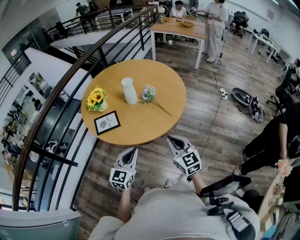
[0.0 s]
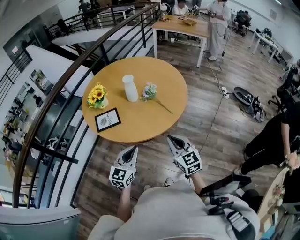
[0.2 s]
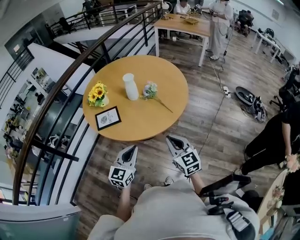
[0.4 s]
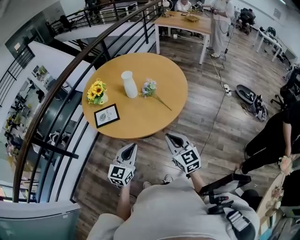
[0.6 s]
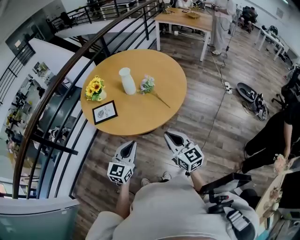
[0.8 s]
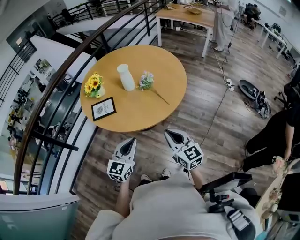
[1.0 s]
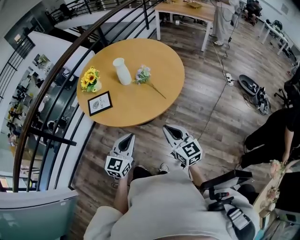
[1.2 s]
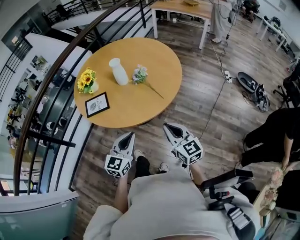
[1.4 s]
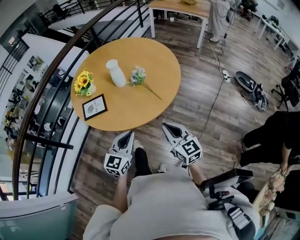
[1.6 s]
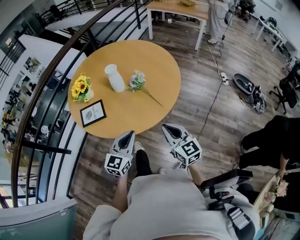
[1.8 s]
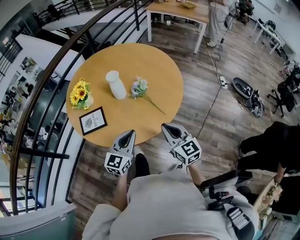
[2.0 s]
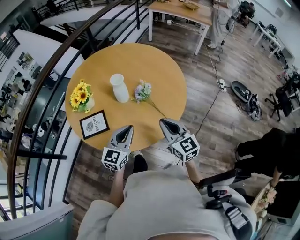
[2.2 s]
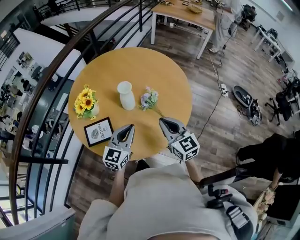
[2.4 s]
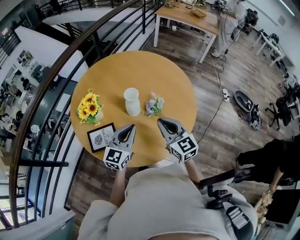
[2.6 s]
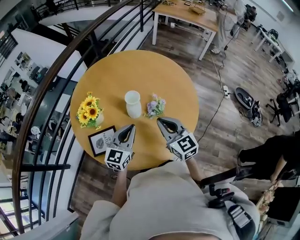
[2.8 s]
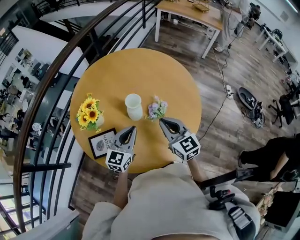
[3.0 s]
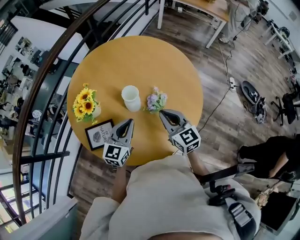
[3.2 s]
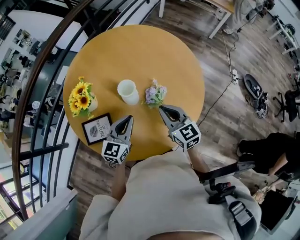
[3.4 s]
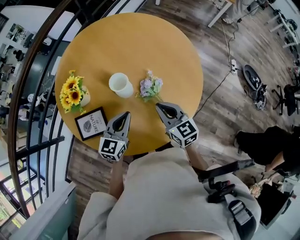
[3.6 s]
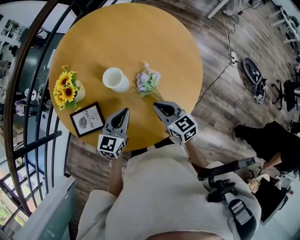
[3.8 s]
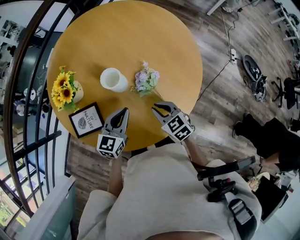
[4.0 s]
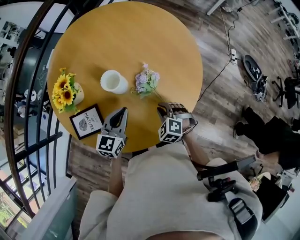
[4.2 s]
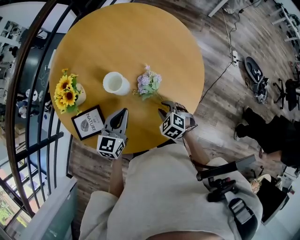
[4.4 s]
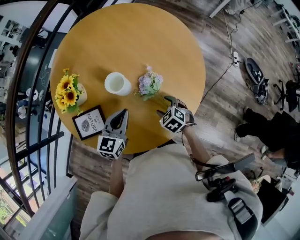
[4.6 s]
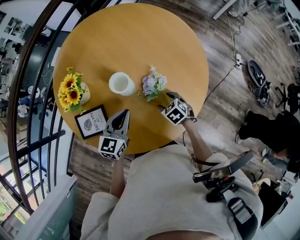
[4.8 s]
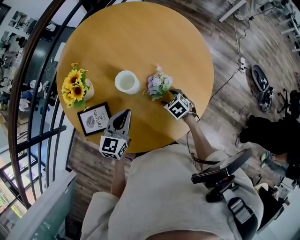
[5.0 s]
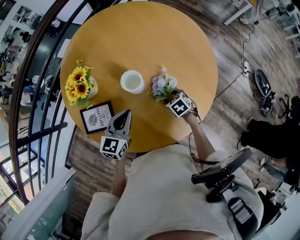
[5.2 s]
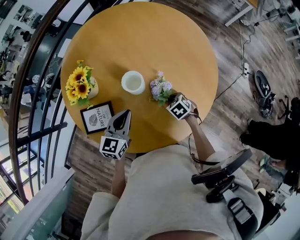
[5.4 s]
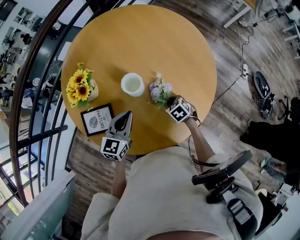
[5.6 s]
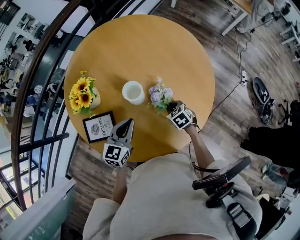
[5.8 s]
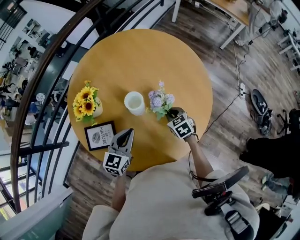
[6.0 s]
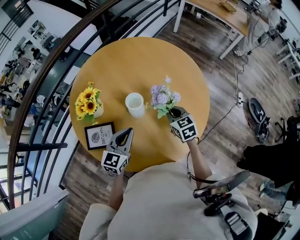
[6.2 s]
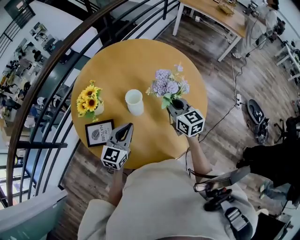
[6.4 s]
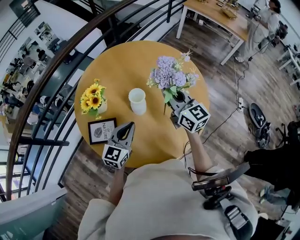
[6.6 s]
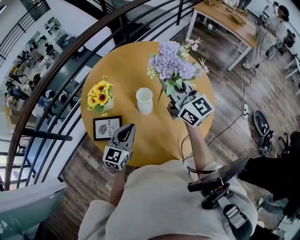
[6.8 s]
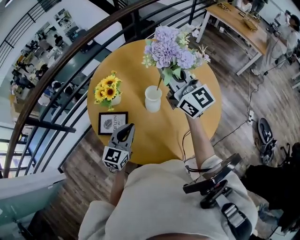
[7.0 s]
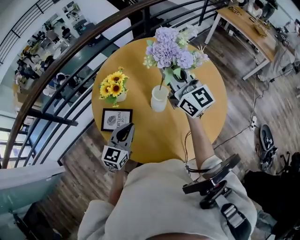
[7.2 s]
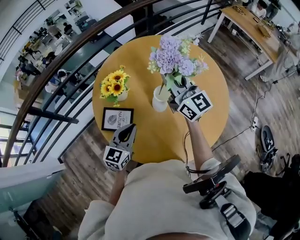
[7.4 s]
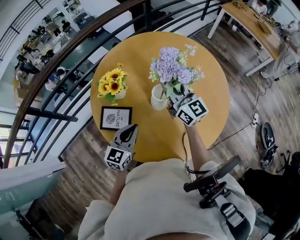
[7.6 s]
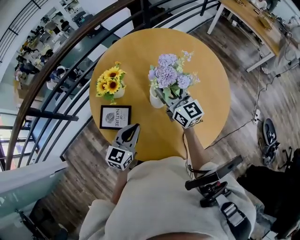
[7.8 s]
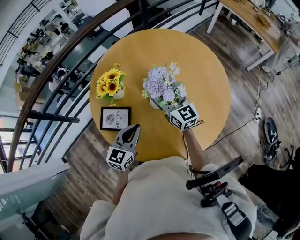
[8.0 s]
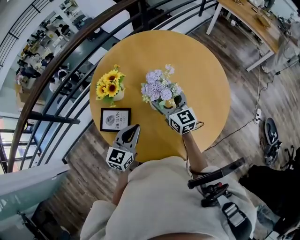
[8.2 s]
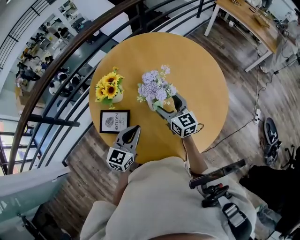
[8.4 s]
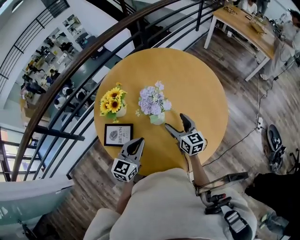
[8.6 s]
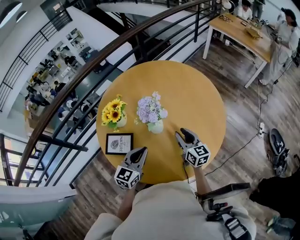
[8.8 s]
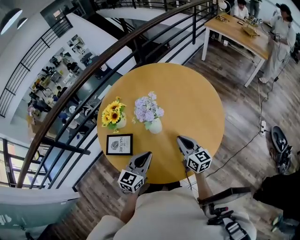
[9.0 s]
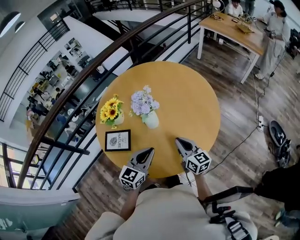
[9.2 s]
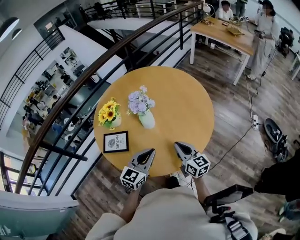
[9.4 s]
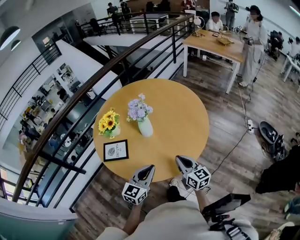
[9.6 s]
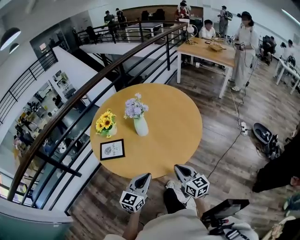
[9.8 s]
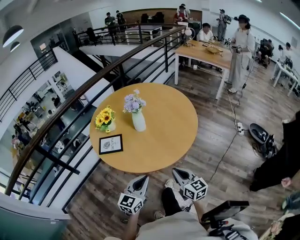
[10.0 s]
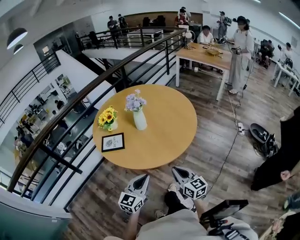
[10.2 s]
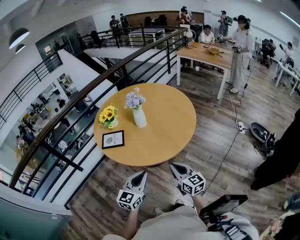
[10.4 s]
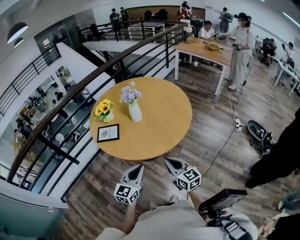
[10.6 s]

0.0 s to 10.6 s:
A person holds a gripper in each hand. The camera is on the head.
0.0 to 1.6 s: Both grippers travel together to the right, approximately 5 cm.
1.6 to 3.0 s: The right gripper moves forward and to the left, approximately 30 cm, while the left gripper shifts about 25 cm forward.
3.0 to 4.6 s: The left gripper moves downward, about 5 cm; the right gripper moves downward, some 25 cm, tilts its fingers approximately 50 degrees downward, and opens its fingers.
4.6 to 6.0 s: The right gripper heads forward, covering about 10 cm, and closes its fingers.
6.0 to 7.6 s: The left gripper moves to the left, about 5 cm. The right gripper heads upward and to the left, covering approximately 30 cm, and tips its fingers upward by approximately 60 degrees.
7.6 to 9.0 s: The left gripper moves to the right, roughly 10 cm. Meanwhile the right gripper travels downward, backward and to the right by about 20 cm, turns by about 20 degrees, and opens, then closes once more.
9.0 to 10.6 s: Both grippers move backward, about 25 cm.

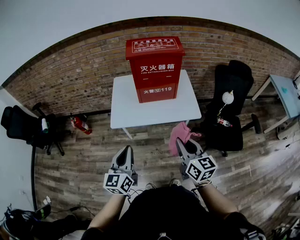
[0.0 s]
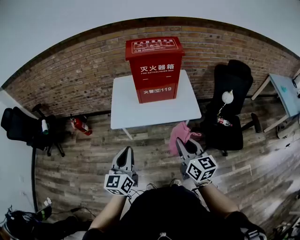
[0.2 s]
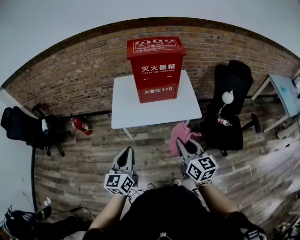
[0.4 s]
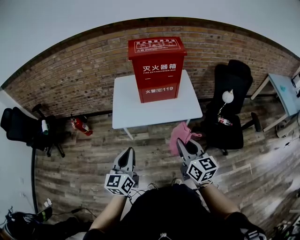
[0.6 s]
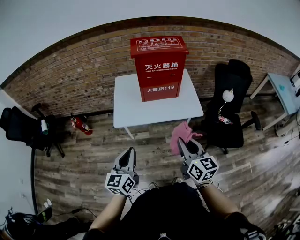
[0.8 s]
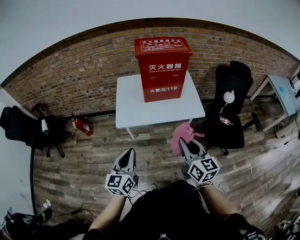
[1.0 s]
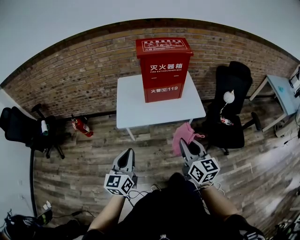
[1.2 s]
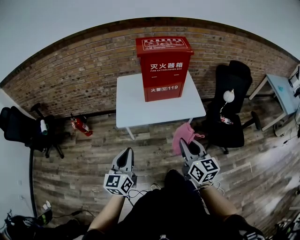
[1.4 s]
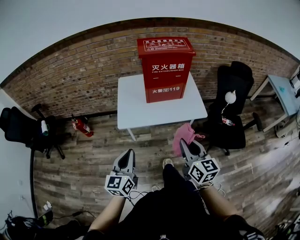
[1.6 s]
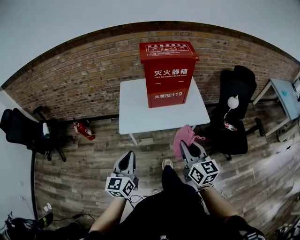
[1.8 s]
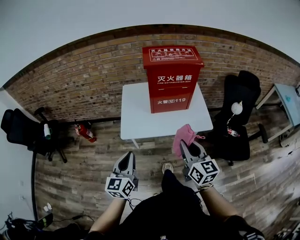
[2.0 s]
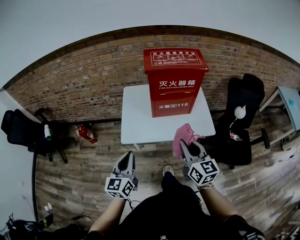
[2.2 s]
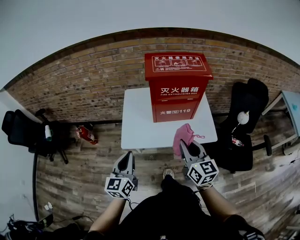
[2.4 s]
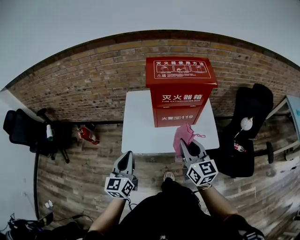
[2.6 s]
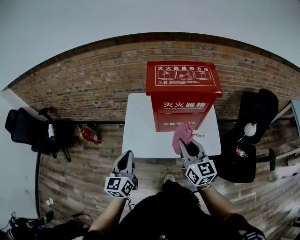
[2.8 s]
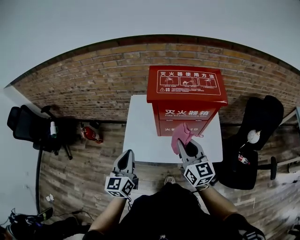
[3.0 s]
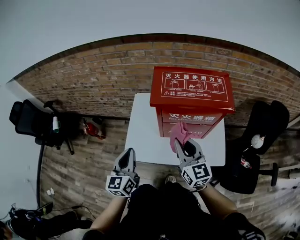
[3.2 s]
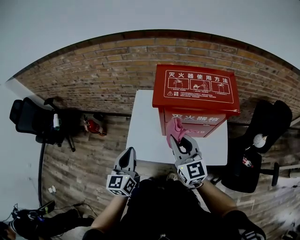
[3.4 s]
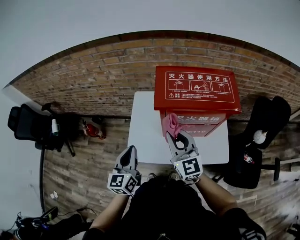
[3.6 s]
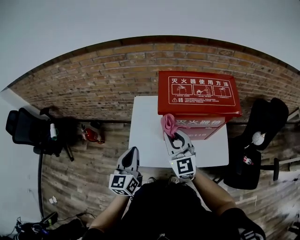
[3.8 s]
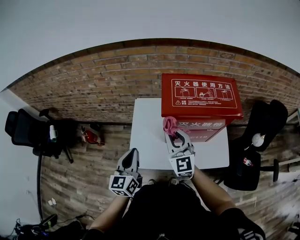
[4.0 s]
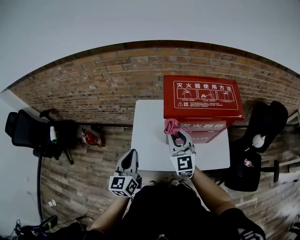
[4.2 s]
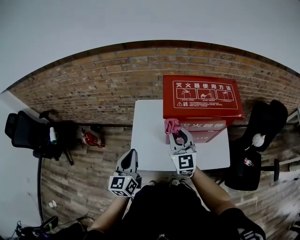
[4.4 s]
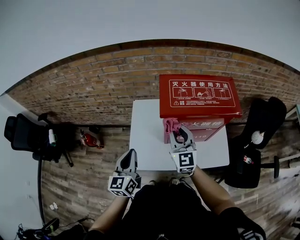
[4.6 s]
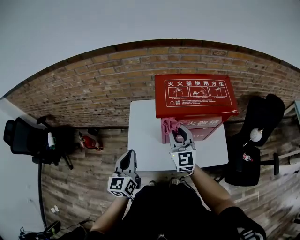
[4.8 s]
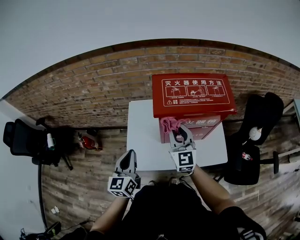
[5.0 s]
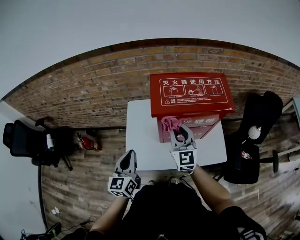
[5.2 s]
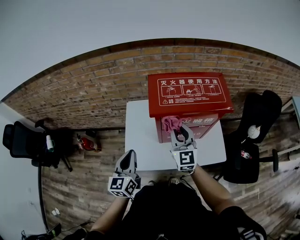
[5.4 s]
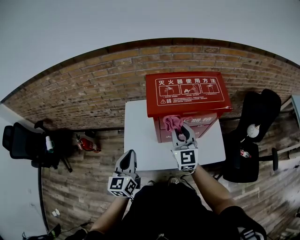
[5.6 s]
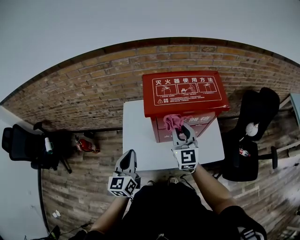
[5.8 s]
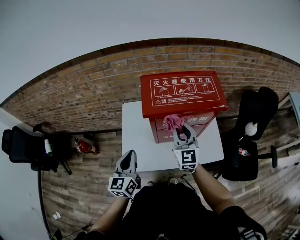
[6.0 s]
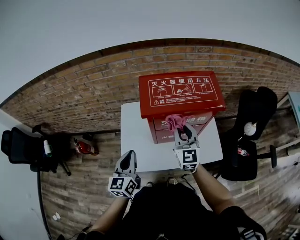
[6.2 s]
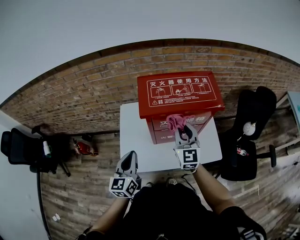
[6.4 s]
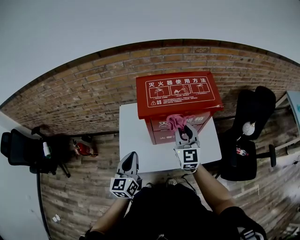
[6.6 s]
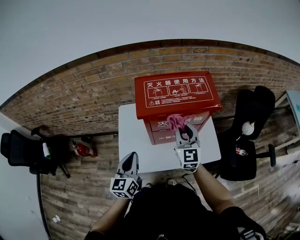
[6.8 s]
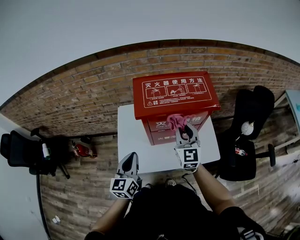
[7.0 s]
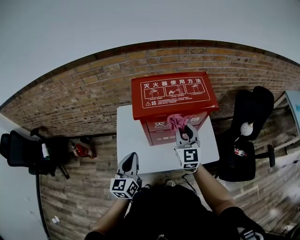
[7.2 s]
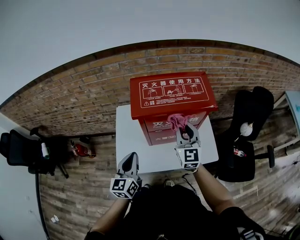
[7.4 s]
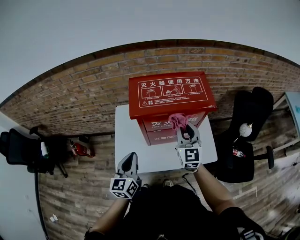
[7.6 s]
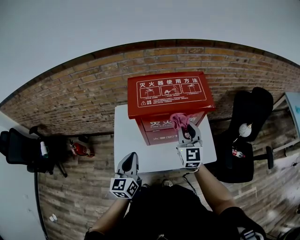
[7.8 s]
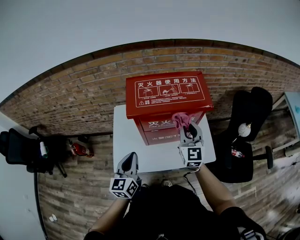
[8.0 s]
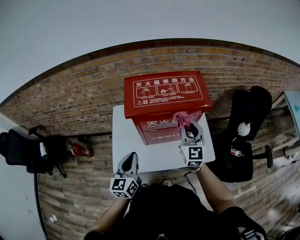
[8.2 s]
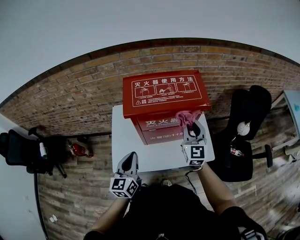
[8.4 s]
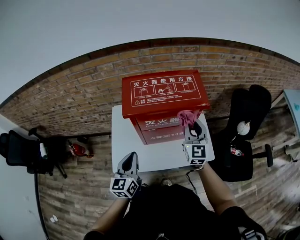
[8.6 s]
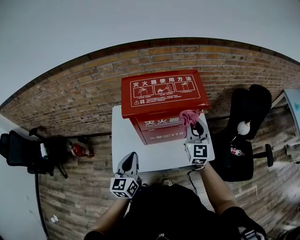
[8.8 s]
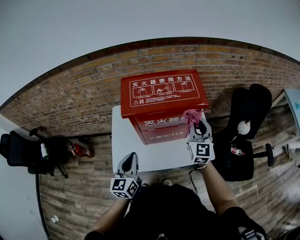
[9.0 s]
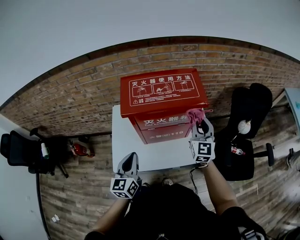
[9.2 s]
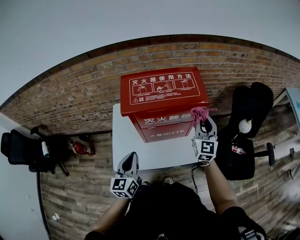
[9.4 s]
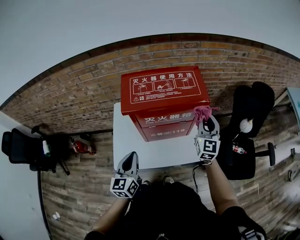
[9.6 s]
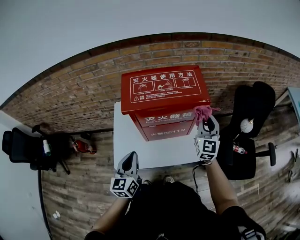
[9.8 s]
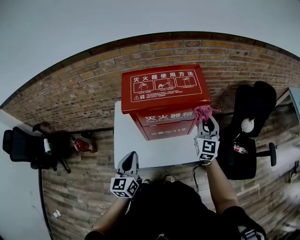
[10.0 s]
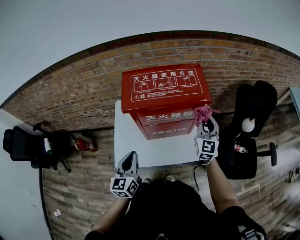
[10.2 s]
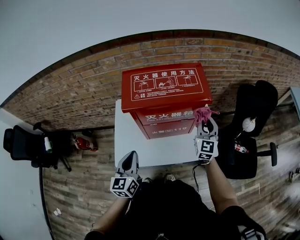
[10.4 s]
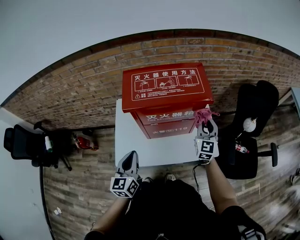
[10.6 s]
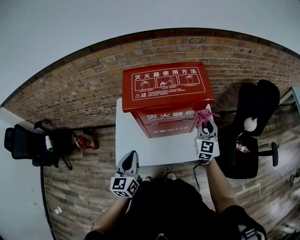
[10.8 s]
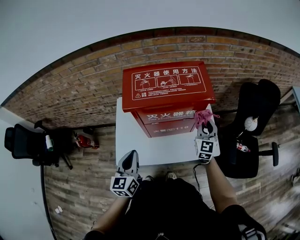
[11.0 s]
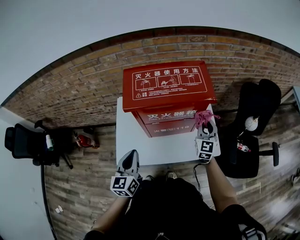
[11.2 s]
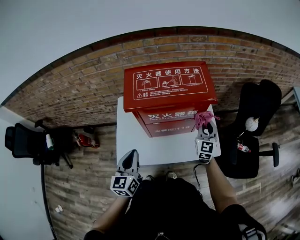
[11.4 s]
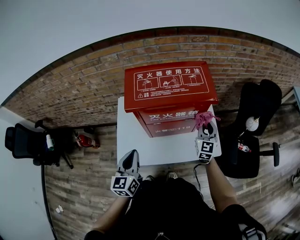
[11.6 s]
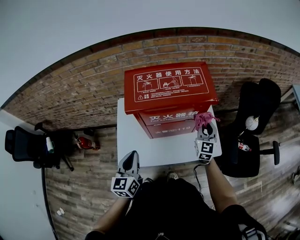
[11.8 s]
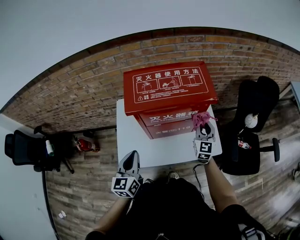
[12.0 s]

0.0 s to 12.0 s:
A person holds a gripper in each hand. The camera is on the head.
0.0 to 1.6 s: The two grippers go about 10 cm to the left.
1.6 to 3.0 s: The grippers both shift forward by approximately 35 cm.
3.0 to 4.4 s: The left gripper is displaced forward by roughly 10 cm; the right gripper goes some 15 cm forward and to the left, and rotates roughly 20 degrees.
4.4 to 6.0 s: The right gripper moves to the right, roughly 10 cm, while the left gripper goes roughly 5 cm to the right.
6.0 to 7.6 s: Both grippers move to the right, roughly 5 cm.
7.6 to 9.0 s: The right gripper travels to the right by about 10 cm.
9.0 to 10.4 s: The right gripper shifts about 5 cm downward.
10.4 to 12.0 s: The right gripper shifts about 5 cm downward.

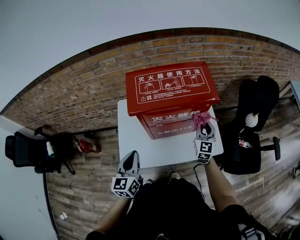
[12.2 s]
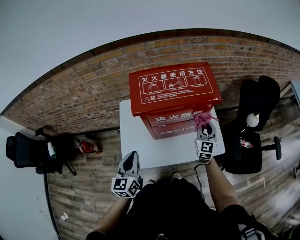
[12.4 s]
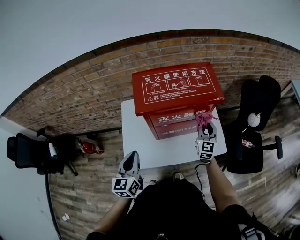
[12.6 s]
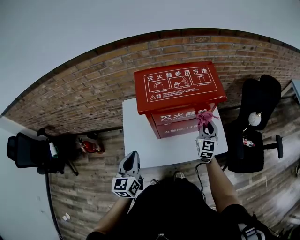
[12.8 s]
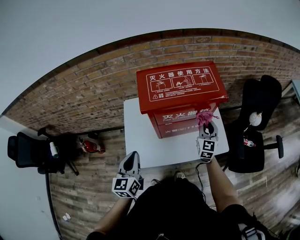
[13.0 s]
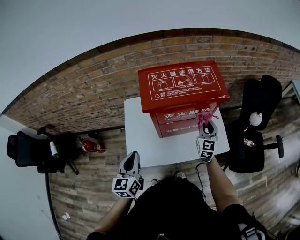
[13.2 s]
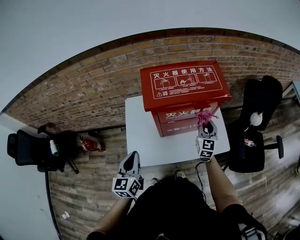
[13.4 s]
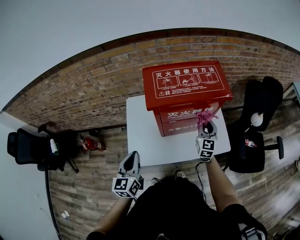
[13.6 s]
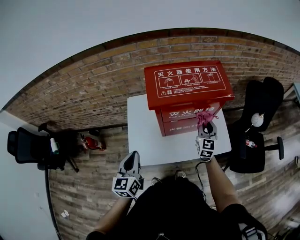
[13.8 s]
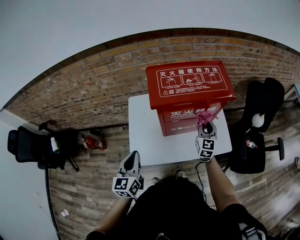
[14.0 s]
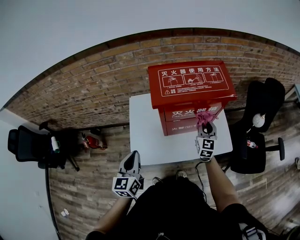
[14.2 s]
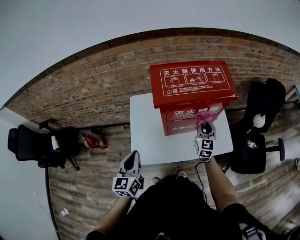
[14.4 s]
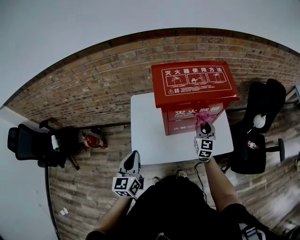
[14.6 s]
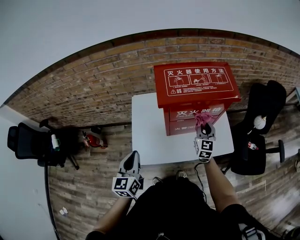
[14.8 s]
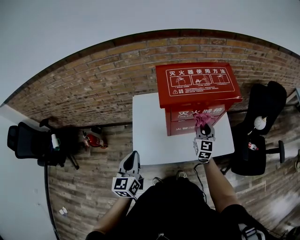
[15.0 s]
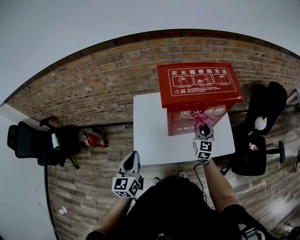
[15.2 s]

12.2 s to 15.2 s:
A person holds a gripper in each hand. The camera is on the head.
12.2 to 13.8 s: The grippers both shift to the left by roughly 5 cm.
13.8 to 15.2 s: The right gripper heads to the left, covering roughly 5 cm.
